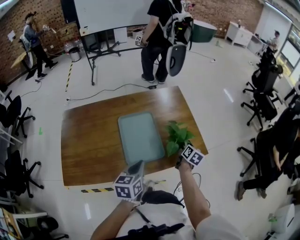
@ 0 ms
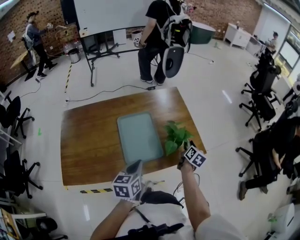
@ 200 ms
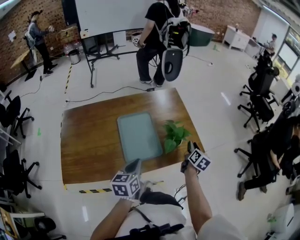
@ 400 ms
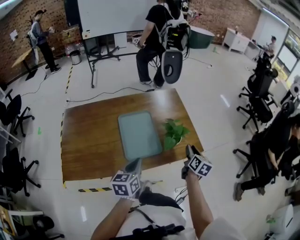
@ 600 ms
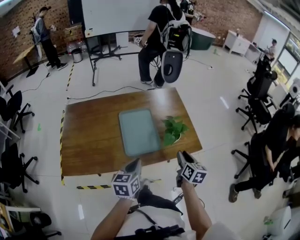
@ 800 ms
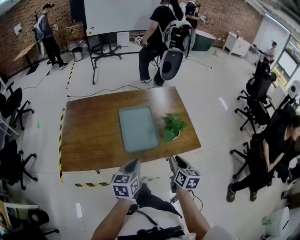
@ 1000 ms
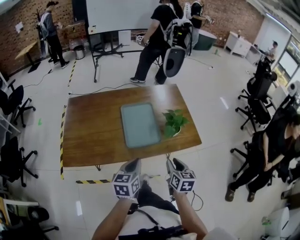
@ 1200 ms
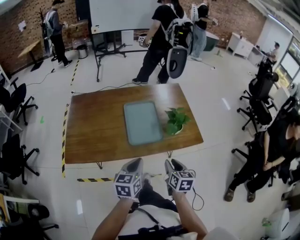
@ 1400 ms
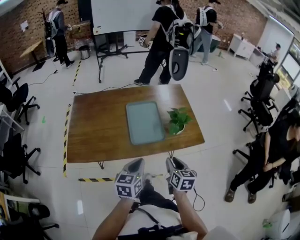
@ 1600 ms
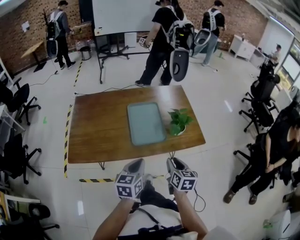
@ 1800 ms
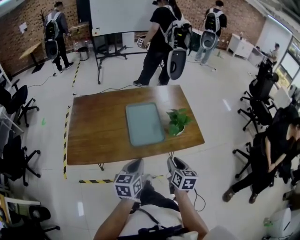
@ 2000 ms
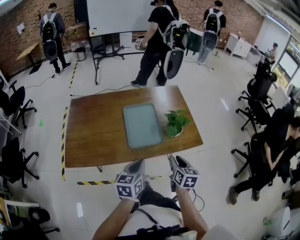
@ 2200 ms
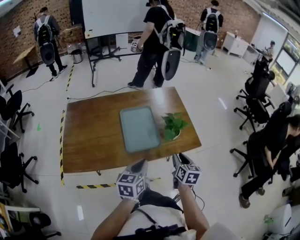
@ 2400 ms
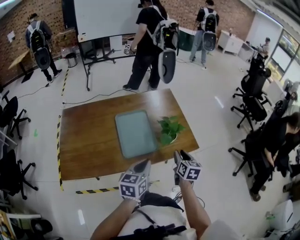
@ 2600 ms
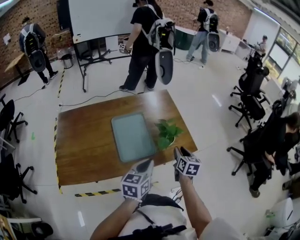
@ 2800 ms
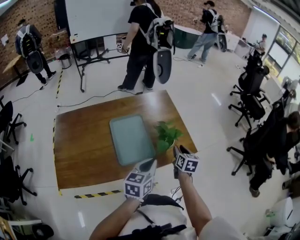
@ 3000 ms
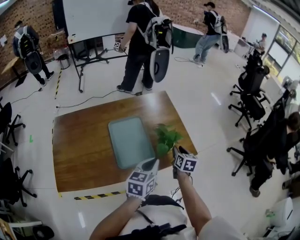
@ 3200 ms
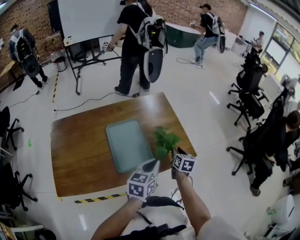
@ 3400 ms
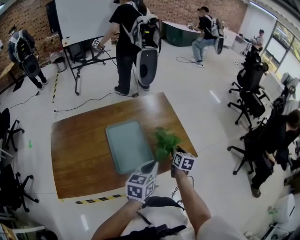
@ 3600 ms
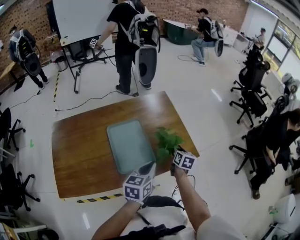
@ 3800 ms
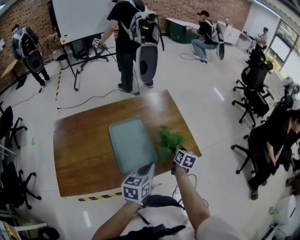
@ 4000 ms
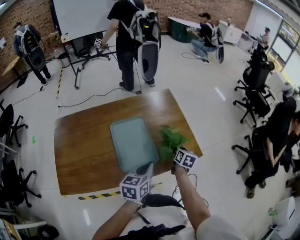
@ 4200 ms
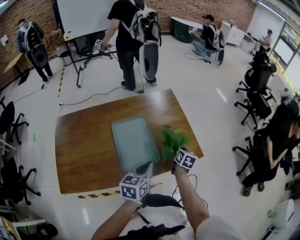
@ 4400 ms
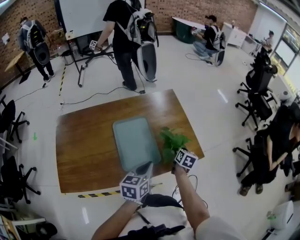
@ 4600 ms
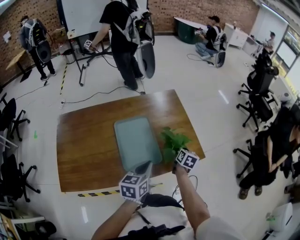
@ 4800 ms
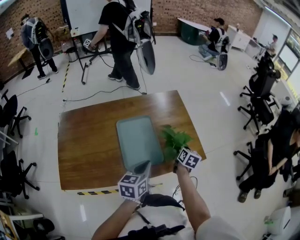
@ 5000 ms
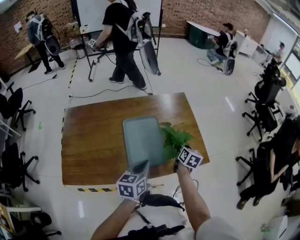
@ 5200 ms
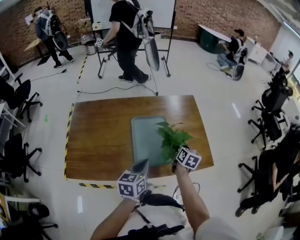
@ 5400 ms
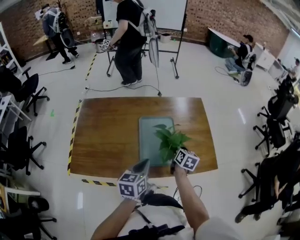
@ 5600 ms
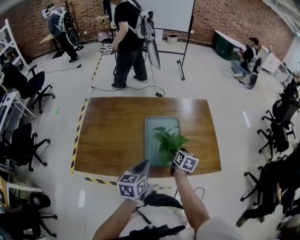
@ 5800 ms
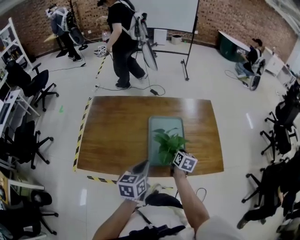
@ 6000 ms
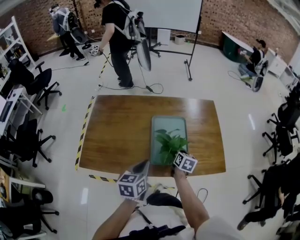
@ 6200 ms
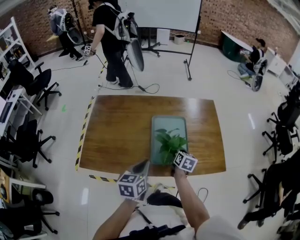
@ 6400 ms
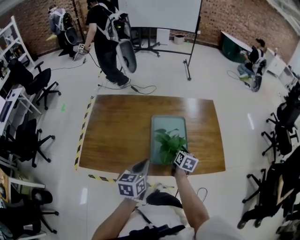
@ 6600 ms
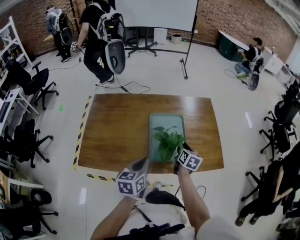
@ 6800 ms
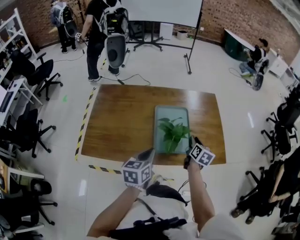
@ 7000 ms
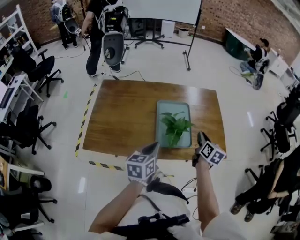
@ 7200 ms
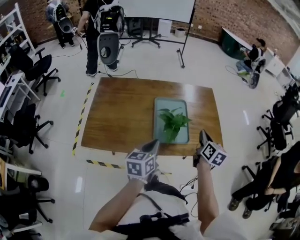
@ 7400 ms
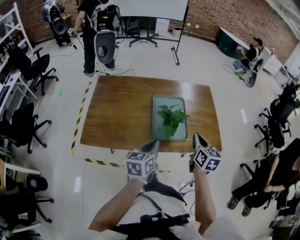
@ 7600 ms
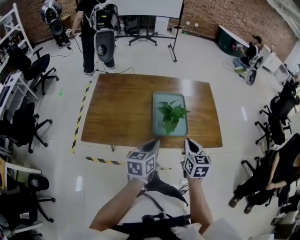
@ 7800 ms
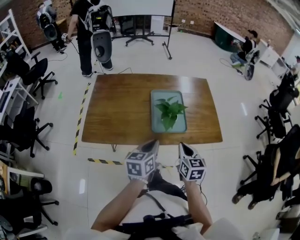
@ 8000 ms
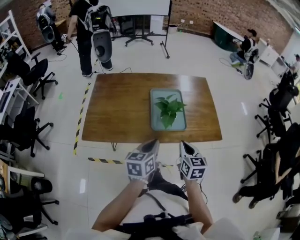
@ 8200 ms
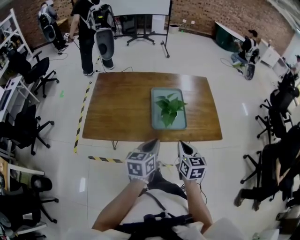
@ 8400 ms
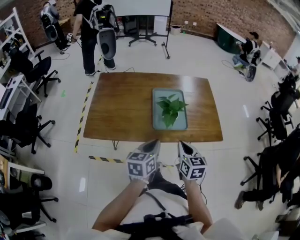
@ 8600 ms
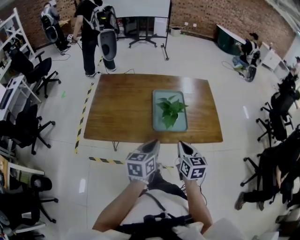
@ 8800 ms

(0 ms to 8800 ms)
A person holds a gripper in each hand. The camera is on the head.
0 ms - 1400 ms: The right gripper goes some 30 cm backward, and changes its angle by some 30 degrees, while the left gripper is displaced backward by roughly 15 cm.
1400 ms - 3000 ms: The right gripper shifts some 20 cm forward. Meanwhile the left gripper is displaced forward and to the right by approximately 15 cm.
3000 ms - 4400 ms: The right gripper moves forward and downward, about 10 cm, and closes its fingers. The left gripper ends up roughly 5 cm from where it was.
4400 ms - 5800 ms: The right gripper moves to the left, about 20 cm, and changes its angle by roughly 20 degrees; the left gripper travels to the left and backward by some 15 cm, and swivels some 20 degrees.
5800 ms - 7400 ms: The left gripper travels backward by roughly 5 cm. Meanwhile the right gripper moves upward, backward and to the right, some 15 cm, and opens and closes again.
7400 ms - 8800 ms: The left gripper shifts about 10 cm backward; the right gripper travels backward and to the left by roughly 20 cm, and swivels approximately 20 degrees.

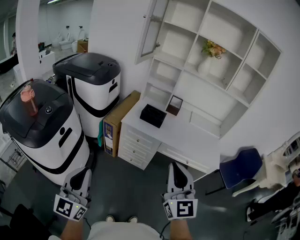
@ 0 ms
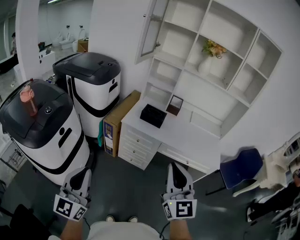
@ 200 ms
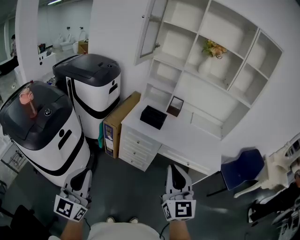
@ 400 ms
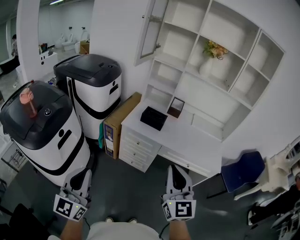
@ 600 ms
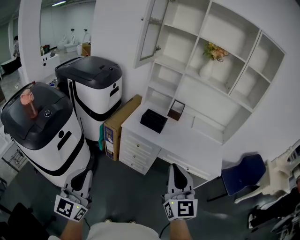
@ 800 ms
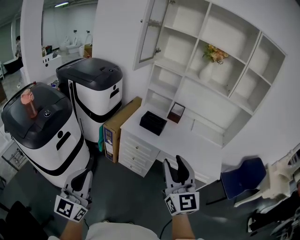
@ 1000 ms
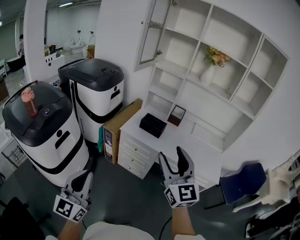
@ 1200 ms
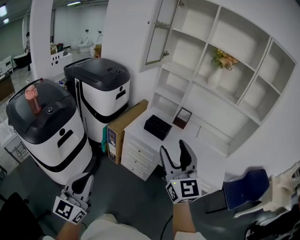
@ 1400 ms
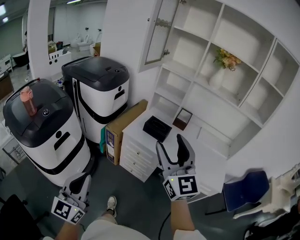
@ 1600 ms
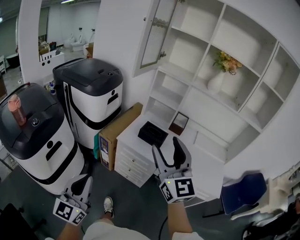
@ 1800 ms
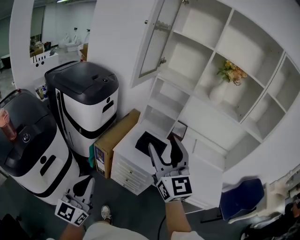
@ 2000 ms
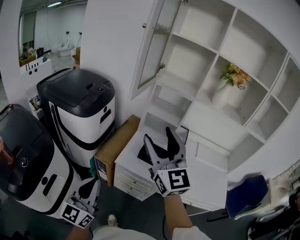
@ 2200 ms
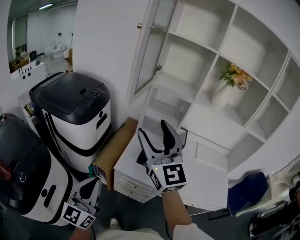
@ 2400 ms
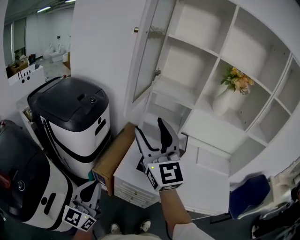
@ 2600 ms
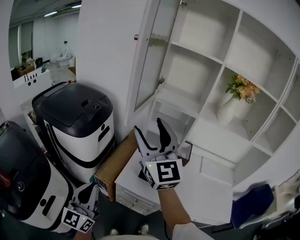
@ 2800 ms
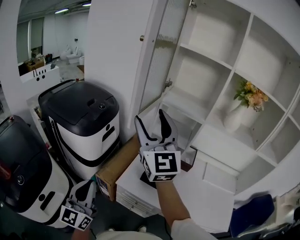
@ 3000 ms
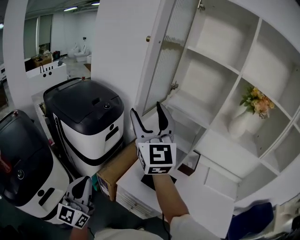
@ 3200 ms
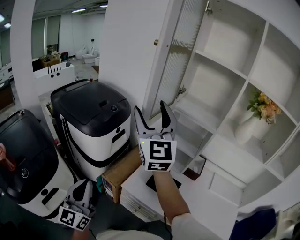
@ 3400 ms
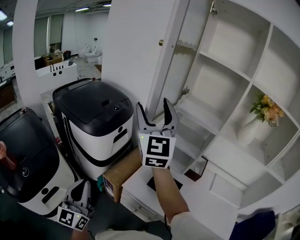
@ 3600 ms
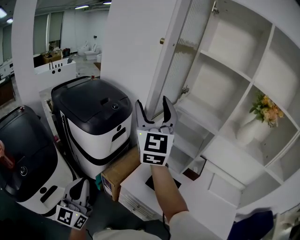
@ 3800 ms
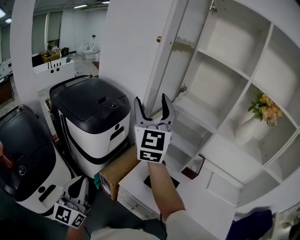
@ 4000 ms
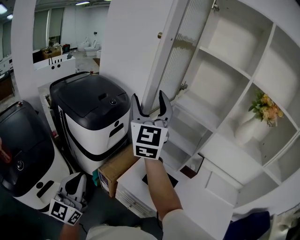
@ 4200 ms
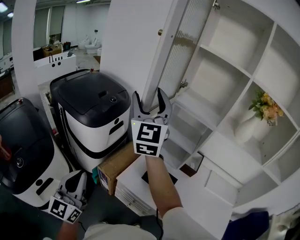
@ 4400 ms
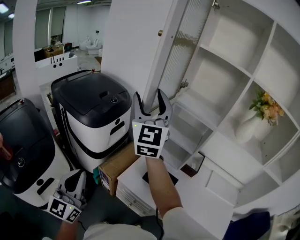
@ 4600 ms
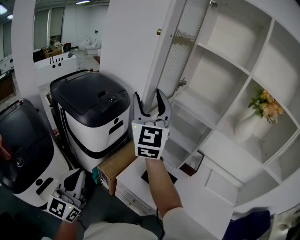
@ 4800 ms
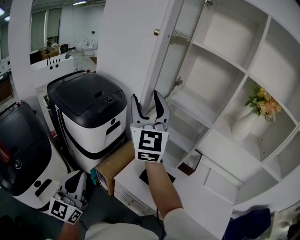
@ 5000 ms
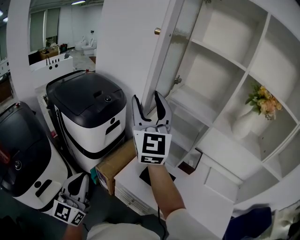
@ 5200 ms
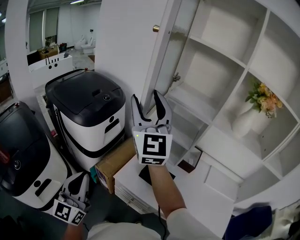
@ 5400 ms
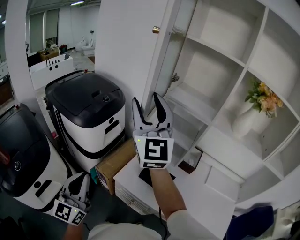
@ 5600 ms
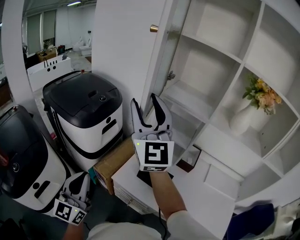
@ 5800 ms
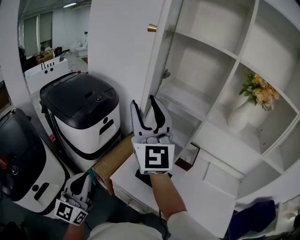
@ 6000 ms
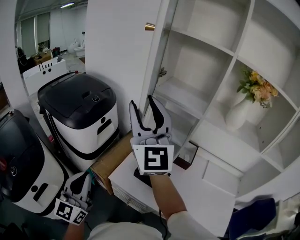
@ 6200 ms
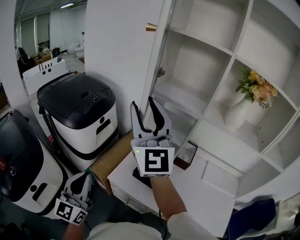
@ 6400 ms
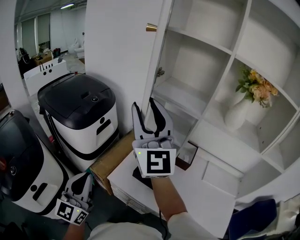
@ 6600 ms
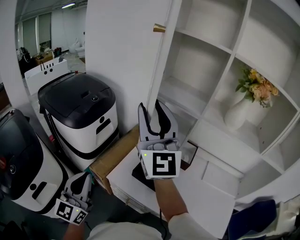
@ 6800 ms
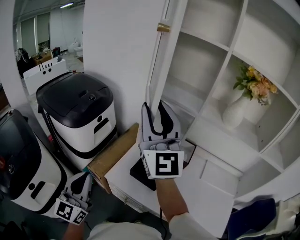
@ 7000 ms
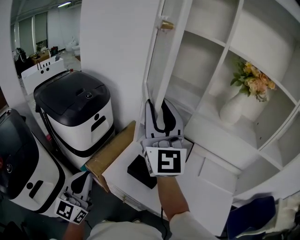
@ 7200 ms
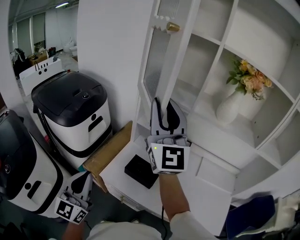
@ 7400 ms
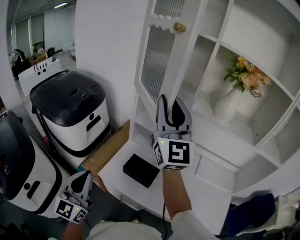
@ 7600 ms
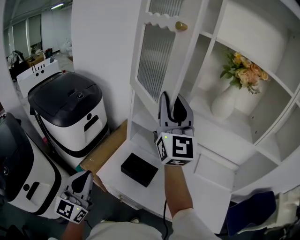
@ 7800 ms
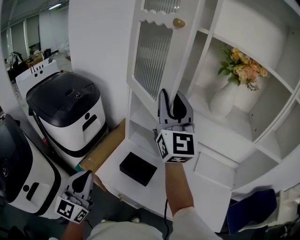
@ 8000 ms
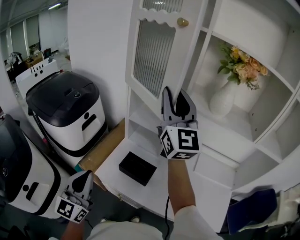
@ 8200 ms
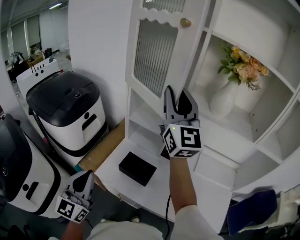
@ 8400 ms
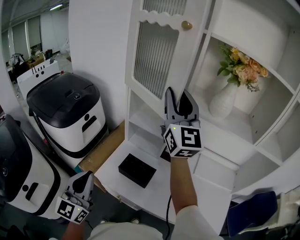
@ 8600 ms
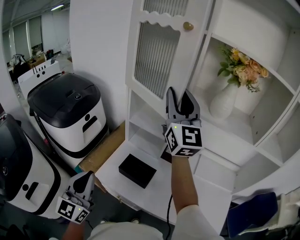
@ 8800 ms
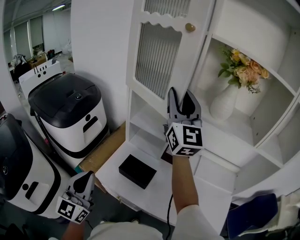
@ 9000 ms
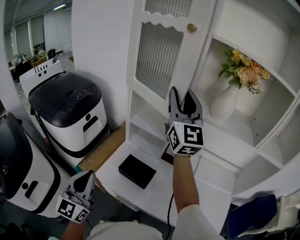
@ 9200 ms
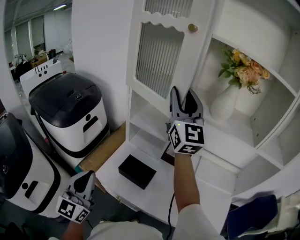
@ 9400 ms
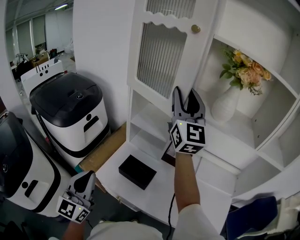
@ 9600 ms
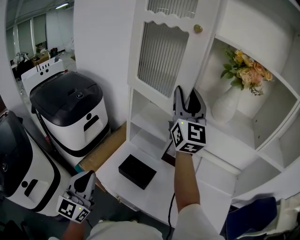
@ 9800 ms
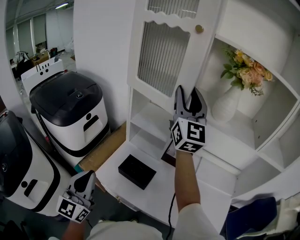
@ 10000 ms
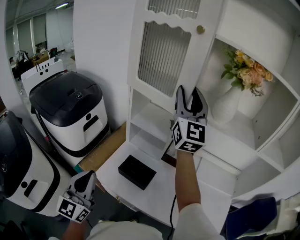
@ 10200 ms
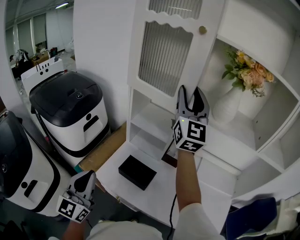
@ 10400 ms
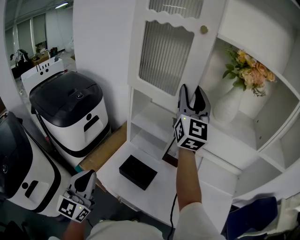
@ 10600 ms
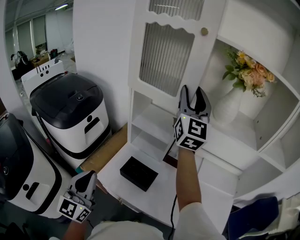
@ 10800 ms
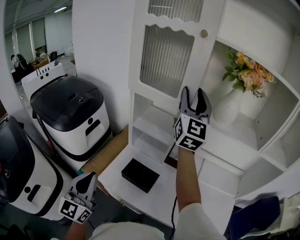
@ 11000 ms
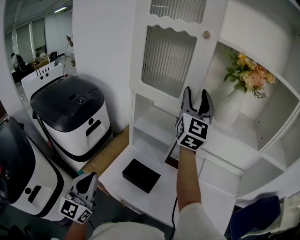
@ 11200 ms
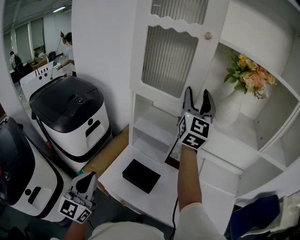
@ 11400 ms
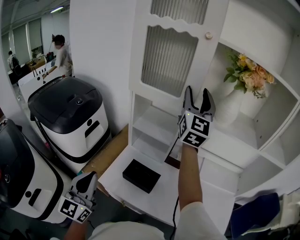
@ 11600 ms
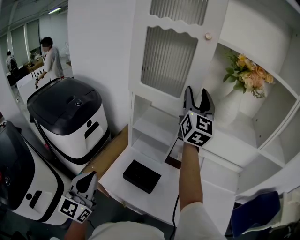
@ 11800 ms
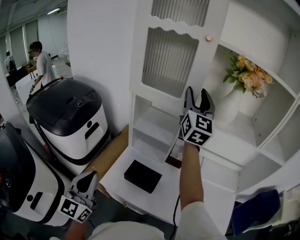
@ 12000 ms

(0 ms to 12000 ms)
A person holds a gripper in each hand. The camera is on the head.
0 ms - 1600 ms: The left gripper moves to the right and forward, roughly 10 cm. Meanwhile the right gripper goes some 15 cm forward, and opens.
1600 ms - 3000 ms: Both grippers move forward, approximately 40 cm.
3000 ms - 4400 ms: The right gripper travels forward by about 10 cm.
4400 ms - 6000 ms: The right gripper heads to the right and backward, covering about 10 cm. Meanwhile the left gripper is displaced to the right by roughly 10 cm.
6000 ms - 7600 ms: The right gripper goes approximately 15 cm to the right, and closes up; the left gripper shifts some 10 cm to the right.
7600 ms - 9000 ms: The right gripper is displaced to the right and forward by roughly 10 cm.
9000 ms - 10400 ms: The grippers make only small movements.
10400 ms - 12000 ms: The grippers move only a little.

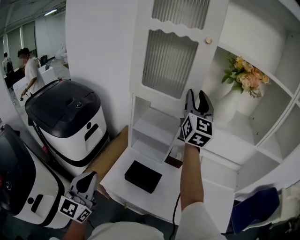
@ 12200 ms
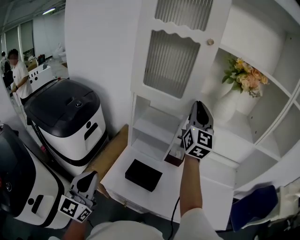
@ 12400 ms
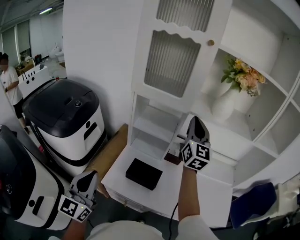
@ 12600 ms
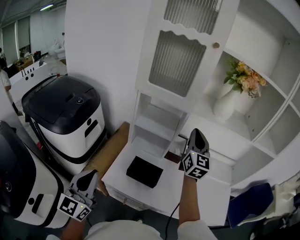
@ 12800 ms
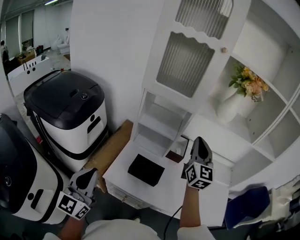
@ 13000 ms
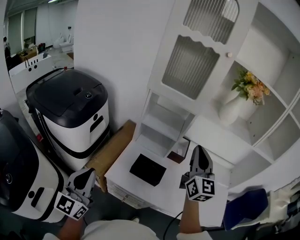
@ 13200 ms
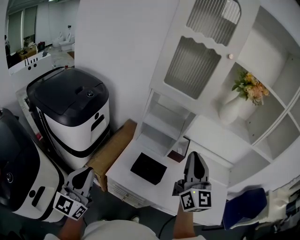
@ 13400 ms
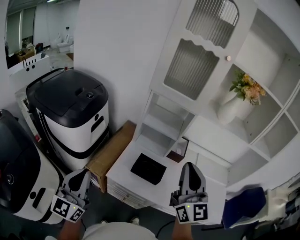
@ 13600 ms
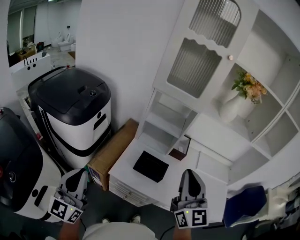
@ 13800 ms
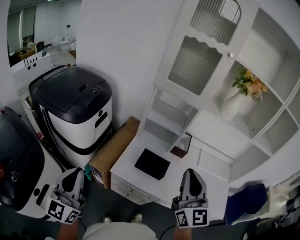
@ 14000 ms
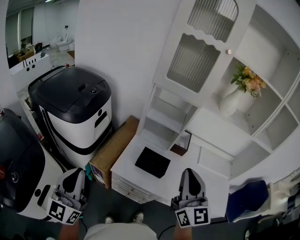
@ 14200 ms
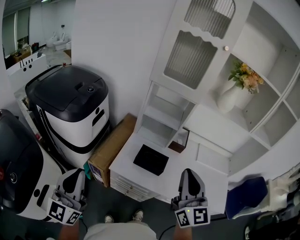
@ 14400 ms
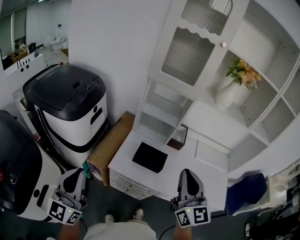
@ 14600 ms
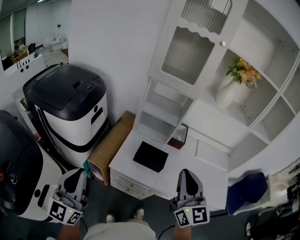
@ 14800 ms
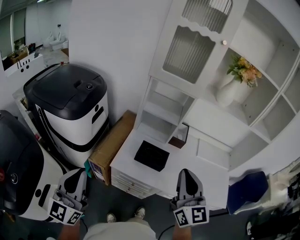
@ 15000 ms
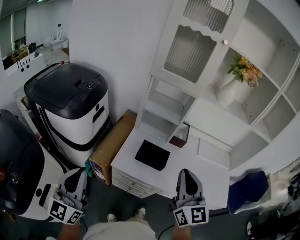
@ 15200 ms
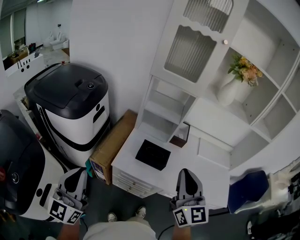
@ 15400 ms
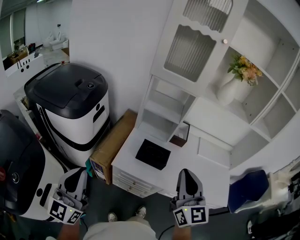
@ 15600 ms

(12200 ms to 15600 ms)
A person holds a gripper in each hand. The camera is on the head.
12200 ms - 13800 ms: The left gripper travels to the left and backward by about 15 cm, while the right gripper is displaced backward by about 35 cm, and closes.
13800 ms - 15600 ms: The right gripper goes some 5 cm backward.
